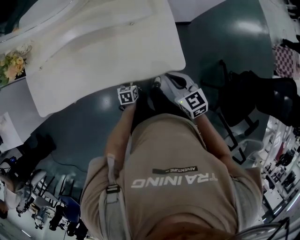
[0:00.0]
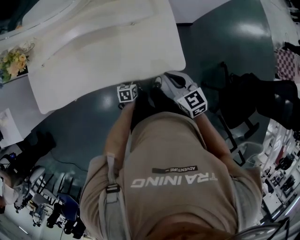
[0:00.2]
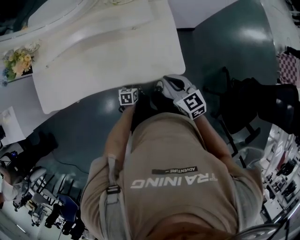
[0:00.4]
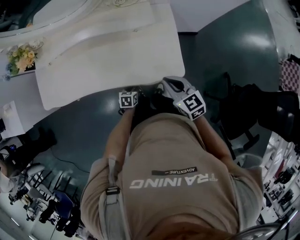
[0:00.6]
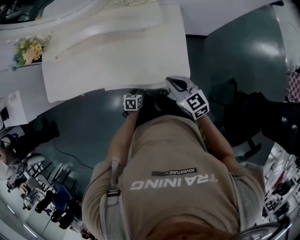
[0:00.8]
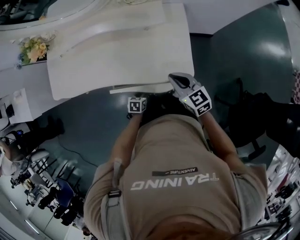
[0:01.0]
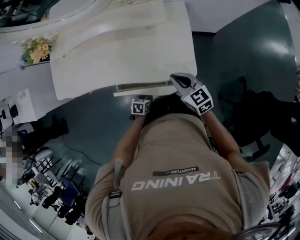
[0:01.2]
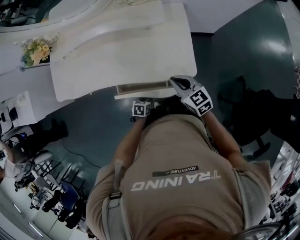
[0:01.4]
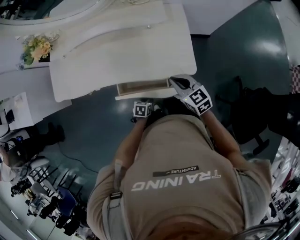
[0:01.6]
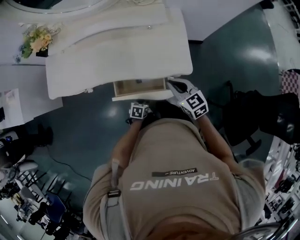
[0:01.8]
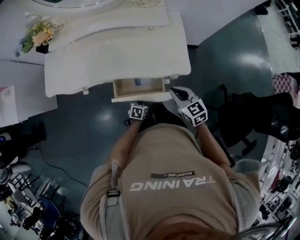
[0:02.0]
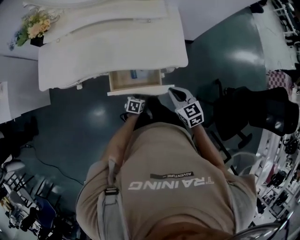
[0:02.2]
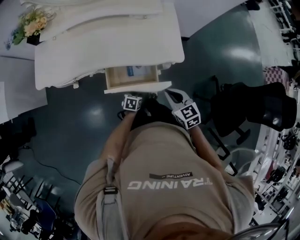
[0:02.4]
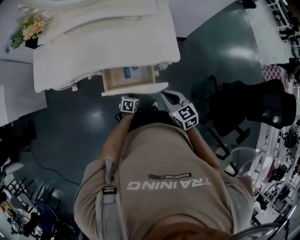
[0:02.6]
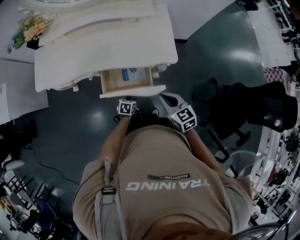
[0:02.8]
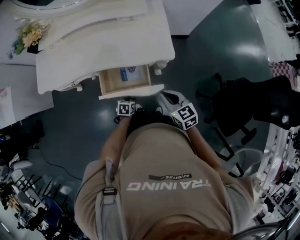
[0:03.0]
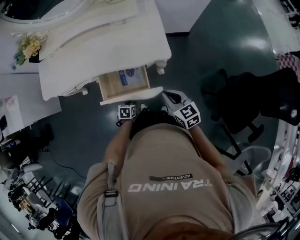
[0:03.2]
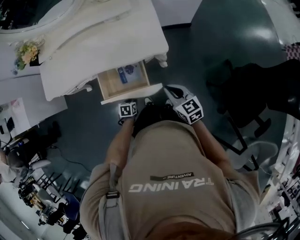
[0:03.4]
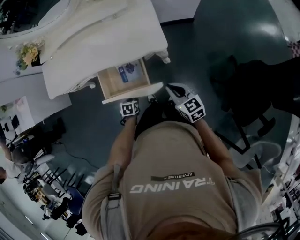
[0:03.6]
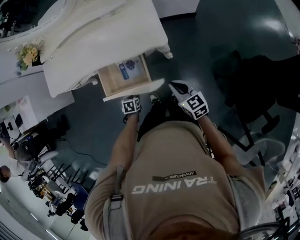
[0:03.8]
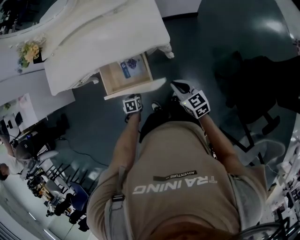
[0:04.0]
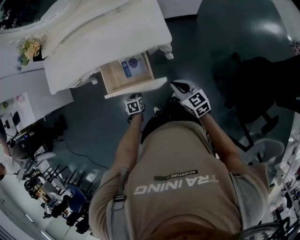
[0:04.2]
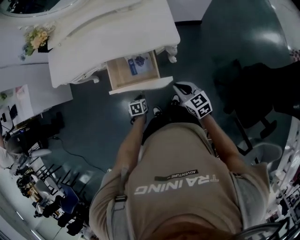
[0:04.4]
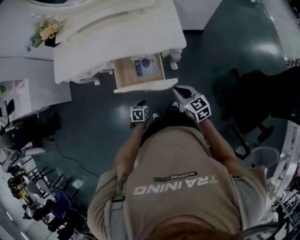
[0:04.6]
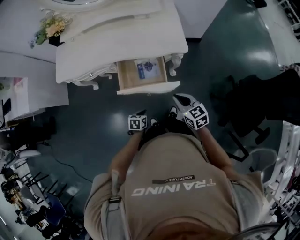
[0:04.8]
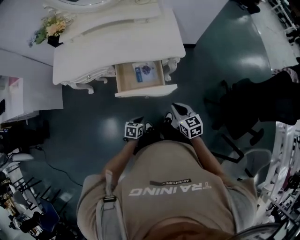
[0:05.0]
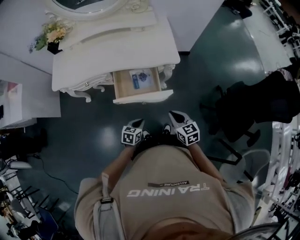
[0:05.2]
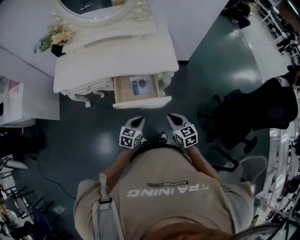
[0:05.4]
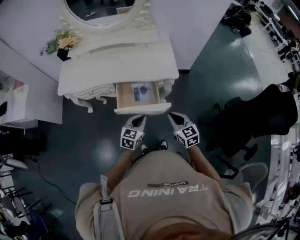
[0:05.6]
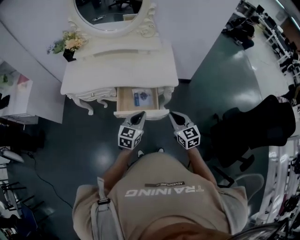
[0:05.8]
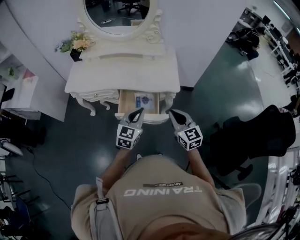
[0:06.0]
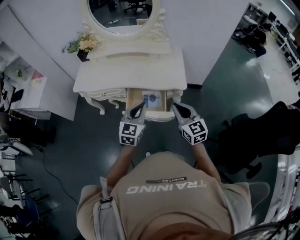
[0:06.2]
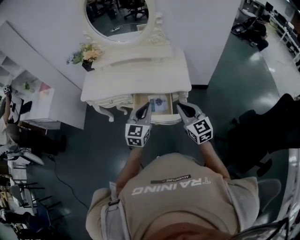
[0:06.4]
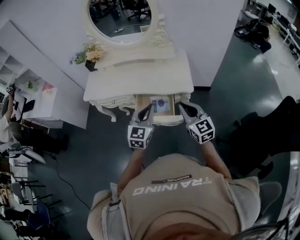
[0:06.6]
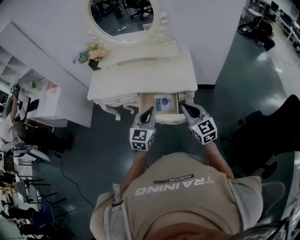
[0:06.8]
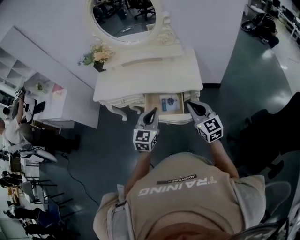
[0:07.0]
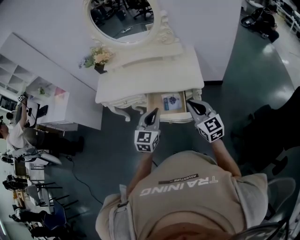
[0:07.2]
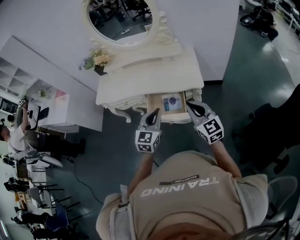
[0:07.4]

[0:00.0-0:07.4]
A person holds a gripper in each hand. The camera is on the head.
0:00.0 to 0:01.4: The left gripper goes about 10 cm backward.
0:01.4 to 0:03.0: The right gripper goes about 20 cm backward. Meanwhile the left gripper moves backward, some 10 cm.
0:03.0 to 0:04.4: The left gripper shifts by some 5 cm.
0:04.4 to 0:06.0: The left gripper goes approximately 40 cm upward, and angles its fingers upward, by some 50 degrees. Meanwhile the right gripper is displaced upward by some 20 cm, and changes its angle by about 30 degrees.
0:06.0 to 0:07.4: The right gripper moves some 5 cm.

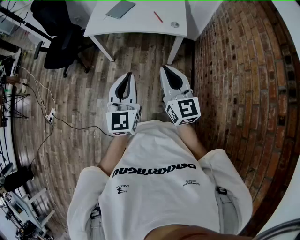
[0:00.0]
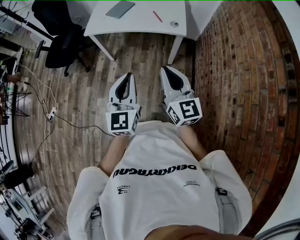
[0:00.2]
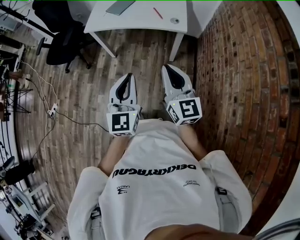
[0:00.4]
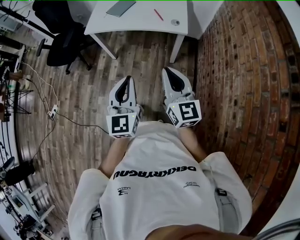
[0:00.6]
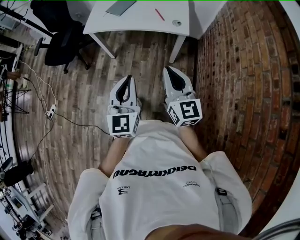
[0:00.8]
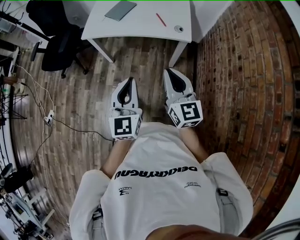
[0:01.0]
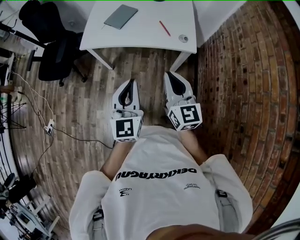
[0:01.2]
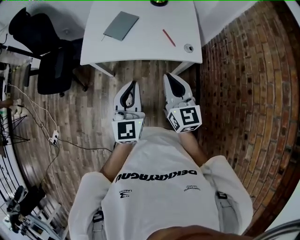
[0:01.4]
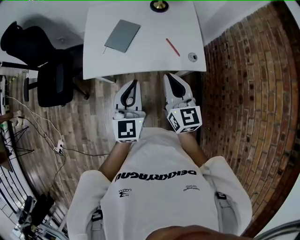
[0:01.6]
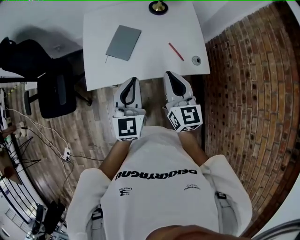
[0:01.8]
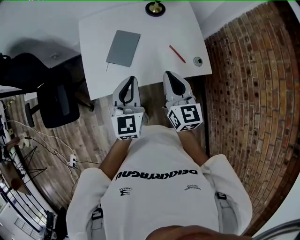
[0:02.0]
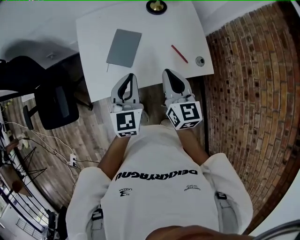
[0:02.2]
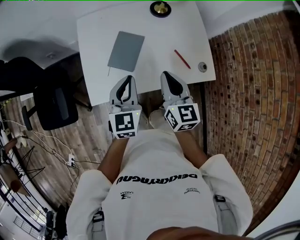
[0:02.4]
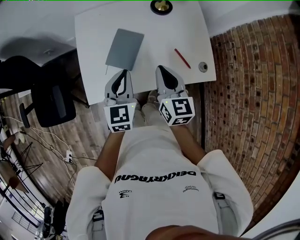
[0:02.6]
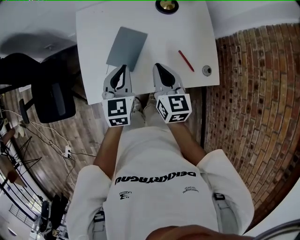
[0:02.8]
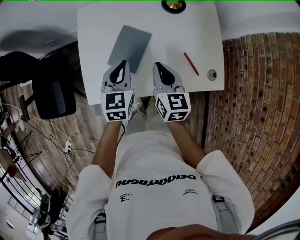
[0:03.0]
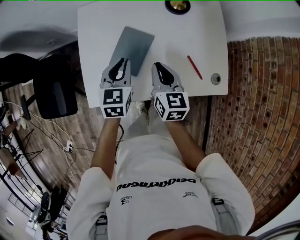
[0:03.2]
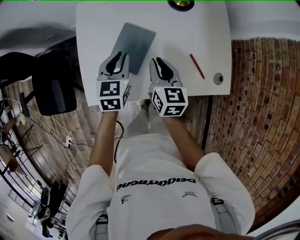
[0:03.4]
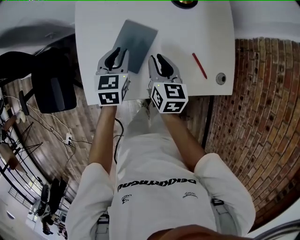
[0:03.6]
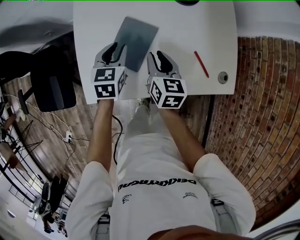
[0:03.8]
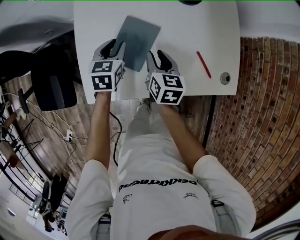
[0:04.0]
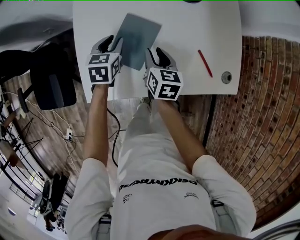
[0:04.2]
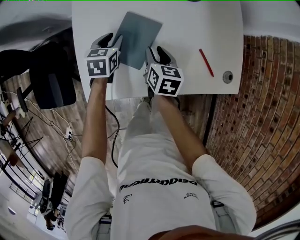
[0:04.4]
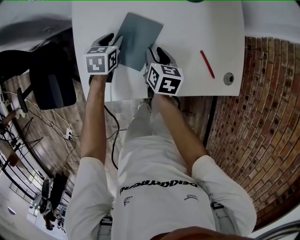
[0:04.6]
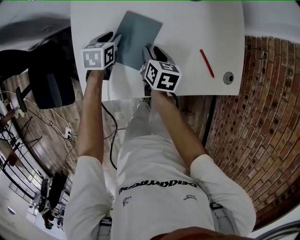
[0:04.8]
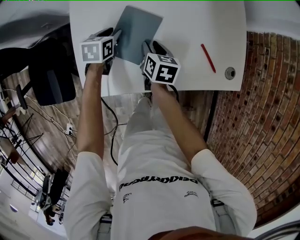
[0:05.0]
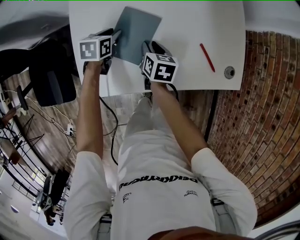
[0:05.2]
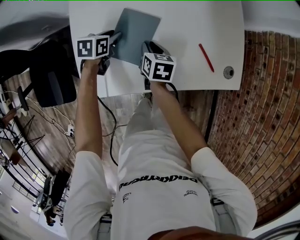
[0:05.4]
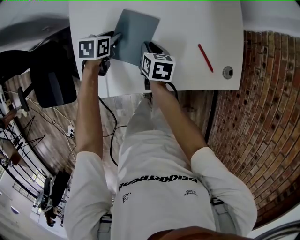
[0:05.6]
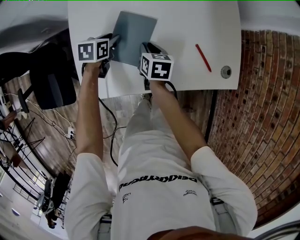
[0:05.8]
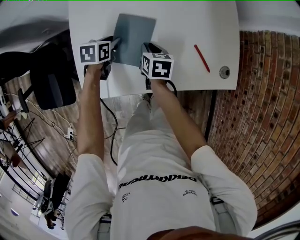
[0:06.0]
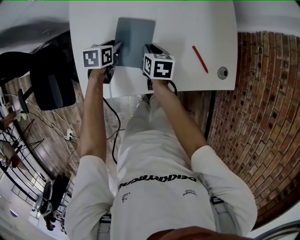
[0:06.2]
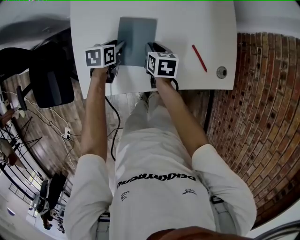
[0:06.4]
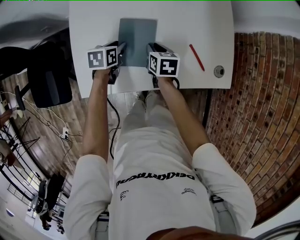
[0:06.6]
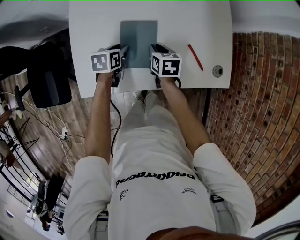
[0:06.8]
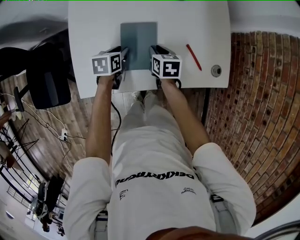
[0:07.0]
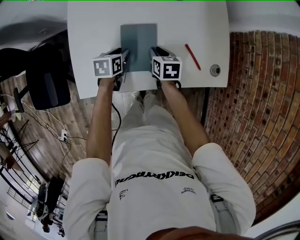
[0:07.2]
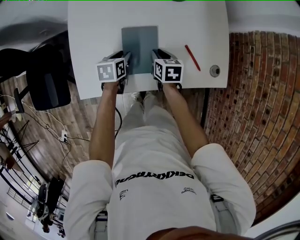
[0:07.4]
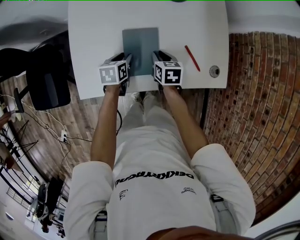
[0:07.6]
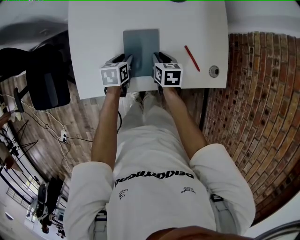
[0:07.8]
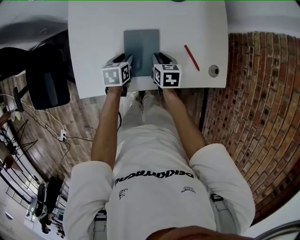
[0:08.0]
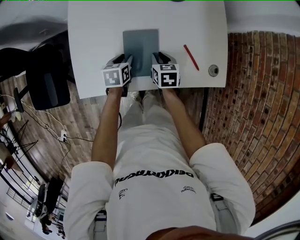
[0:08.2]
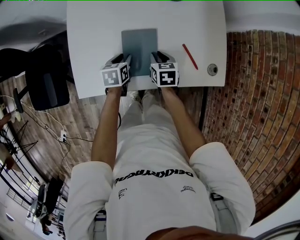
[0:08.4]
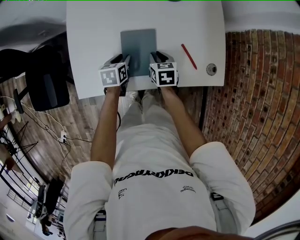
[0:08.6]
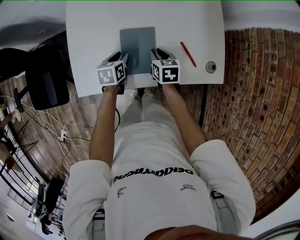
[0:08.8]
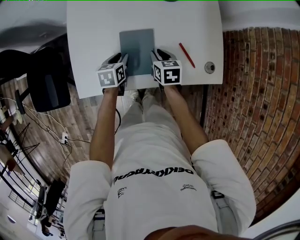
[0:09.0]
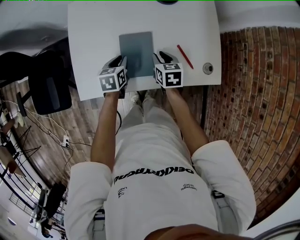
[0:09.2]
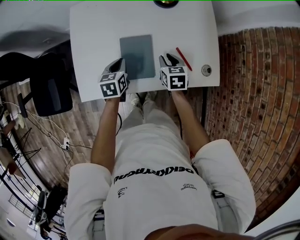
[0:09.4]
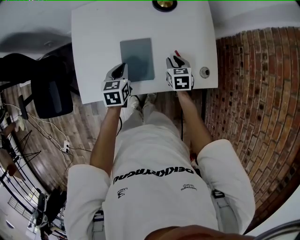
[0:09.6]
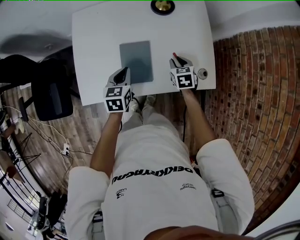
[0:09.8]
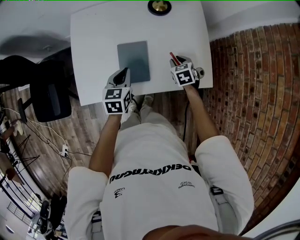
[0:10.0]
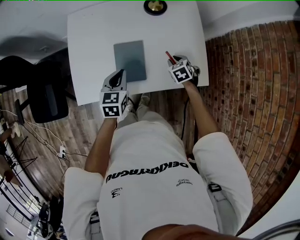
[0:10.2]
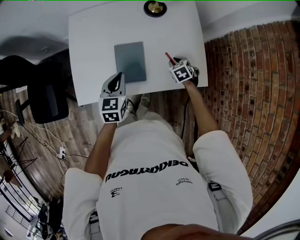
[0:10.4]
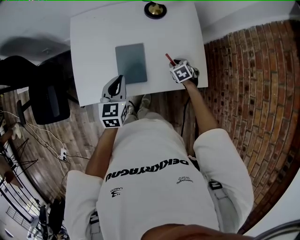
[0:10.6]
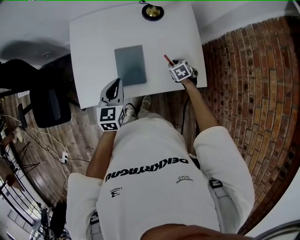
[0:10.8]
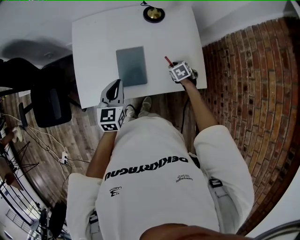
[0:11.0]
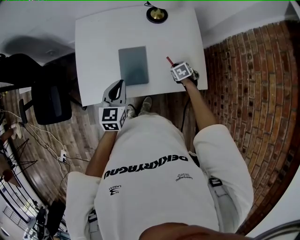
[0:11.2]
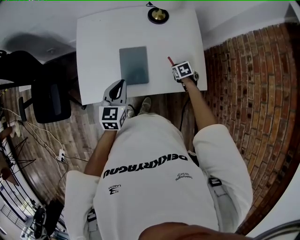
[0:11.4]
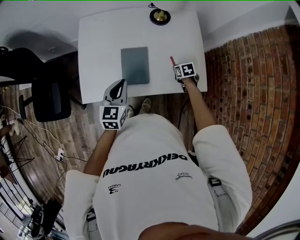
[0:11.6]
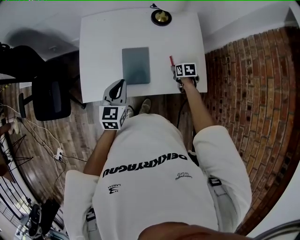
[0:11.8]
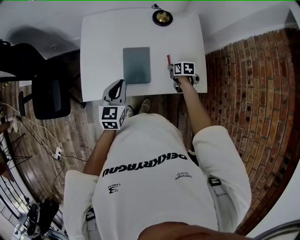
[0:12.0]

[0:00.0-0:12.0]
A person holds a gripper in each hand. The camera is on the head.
0:00.0 to 0:01.6: The two grippers travel together, forward, about 40 cm.
0:01.6 to 0:03.0: The right gripper is displaced forward, downward and to the left by approximately 30 cm. Meanwhile the left gripper shifts about 35 cm forward and downward, and turns by some 20 degrees.
0:03.0 to 0:04.4: The right gripper travels downward by about 15 cm, turns by some 20 degrees, and opens up; the left gripper goes roughly 20 cm downward and forward, swivels roughly 20 degrees, and opens its fingers.
0:04.4 to 0:06.0: The grippers move only a little.
0:06.0 to 0:07.6: The left gripper shifts approximately 10 cm to the right and backward. The right gripper shifts some 5 cm to the right.
0:07.6 to 0:09.0: The grippers make only small movements.
0:09.0 to 0:10.4: The left gripper is displaced upward by roughly 15 cm, swivels about 20 degrees, and closes up. Meanwhile the right gripper moves to the right, some 15 cm, and swivels approximately 30 degrees.
0:10.4 to 0:12.0: The right gripper turns by approximately 40 degrees, while the left gripper shifts by about 5 cm.

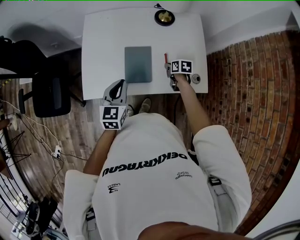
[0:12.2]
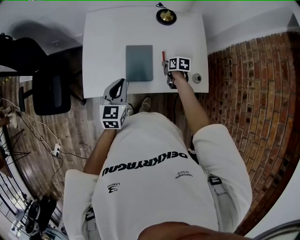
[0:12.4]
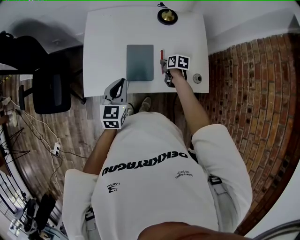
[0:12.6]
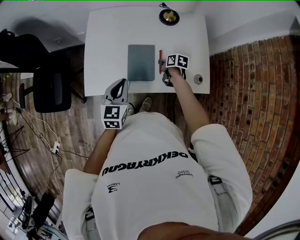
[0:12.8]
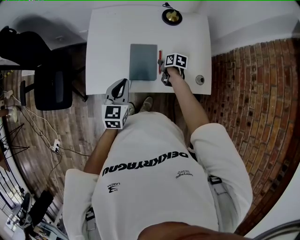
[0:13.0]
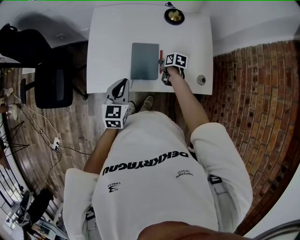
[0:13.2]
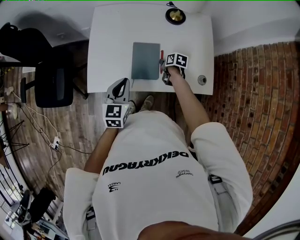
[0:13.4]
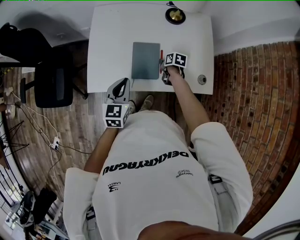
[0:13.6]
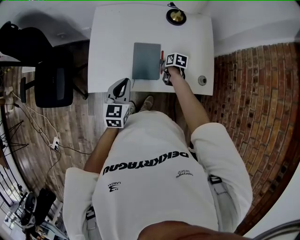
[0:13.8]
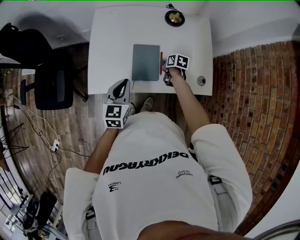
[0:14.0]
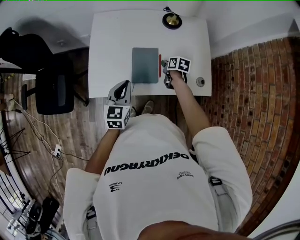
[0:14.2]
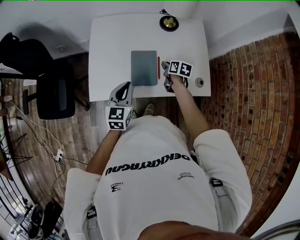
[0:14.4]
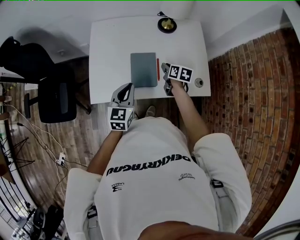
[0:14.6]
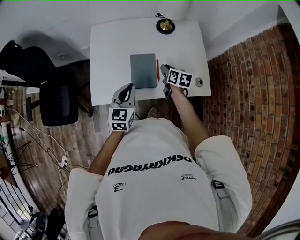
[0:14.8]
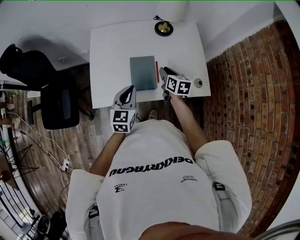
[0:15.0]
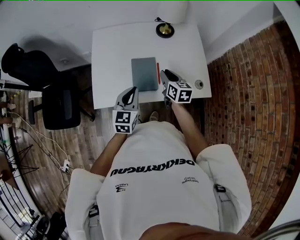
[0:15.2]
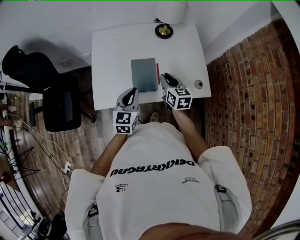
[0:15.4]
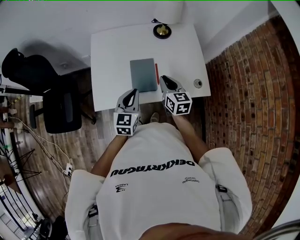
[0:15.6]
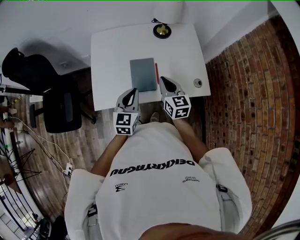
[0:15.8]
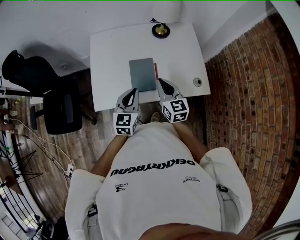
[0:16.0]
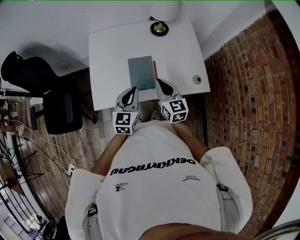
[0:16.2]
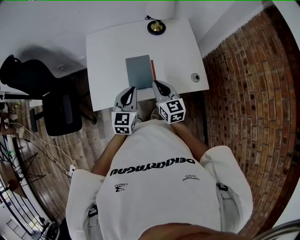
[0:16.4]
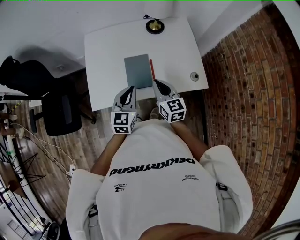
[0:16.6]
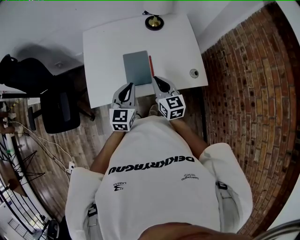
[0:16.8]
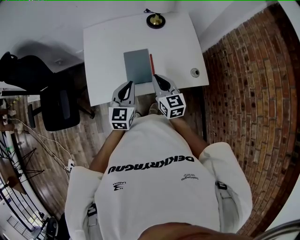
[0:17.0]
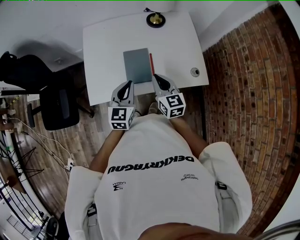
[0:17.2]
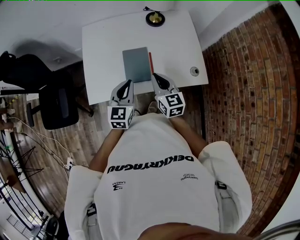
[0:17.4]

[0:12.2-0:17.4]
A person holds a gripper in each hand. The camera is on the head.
0:12.2 to 0:14.0: The right gripper moves to the left, approximately 5 cm.
0:14.0 to 0:15.6: The right gripper travels upward and backward by roughly 25 cm, and points its fingers some 30 degrees further upward. The left gripper shifts by roughly 5 cm.
0:15.6 to 0:17.4: There are only small adjustments of the grippers.
